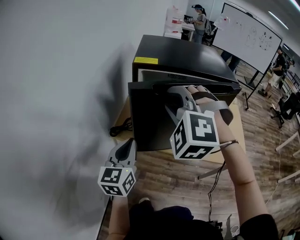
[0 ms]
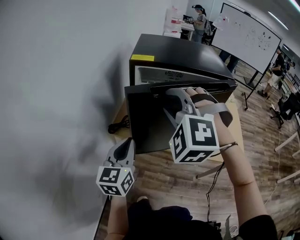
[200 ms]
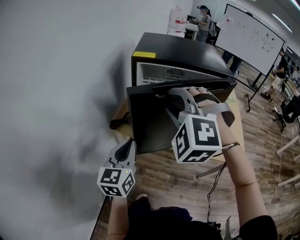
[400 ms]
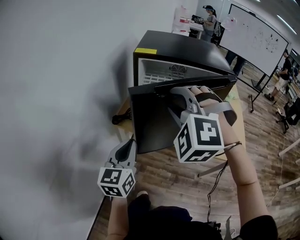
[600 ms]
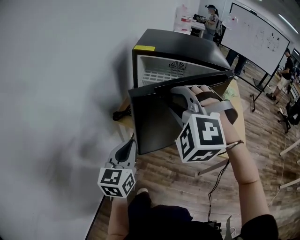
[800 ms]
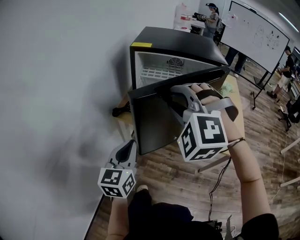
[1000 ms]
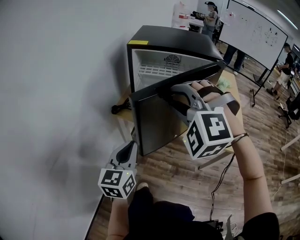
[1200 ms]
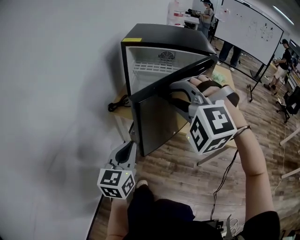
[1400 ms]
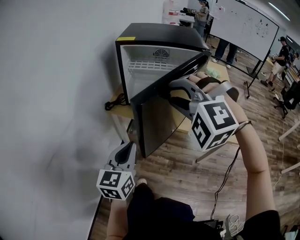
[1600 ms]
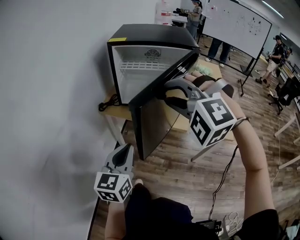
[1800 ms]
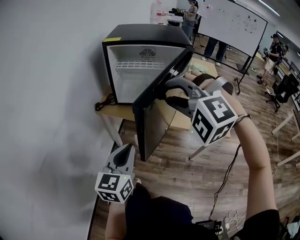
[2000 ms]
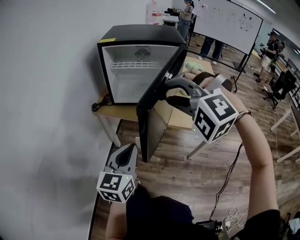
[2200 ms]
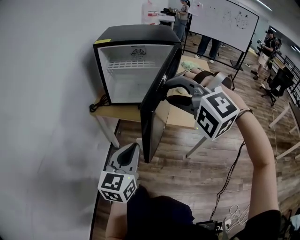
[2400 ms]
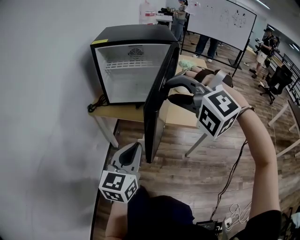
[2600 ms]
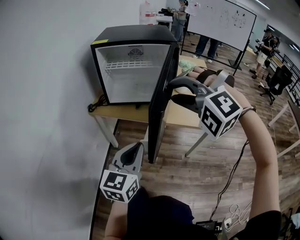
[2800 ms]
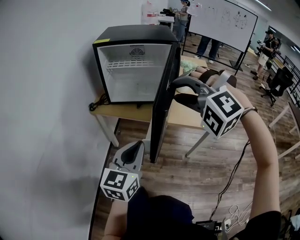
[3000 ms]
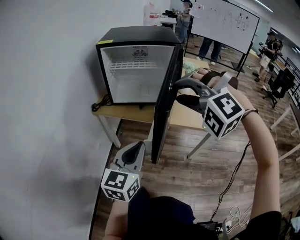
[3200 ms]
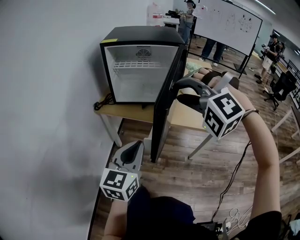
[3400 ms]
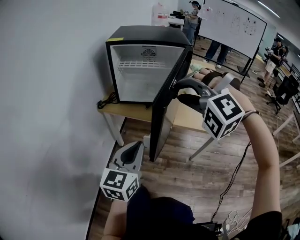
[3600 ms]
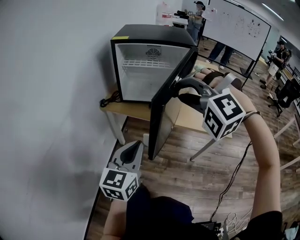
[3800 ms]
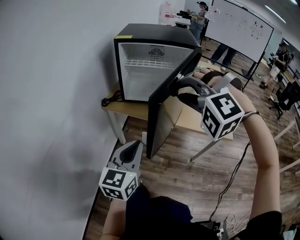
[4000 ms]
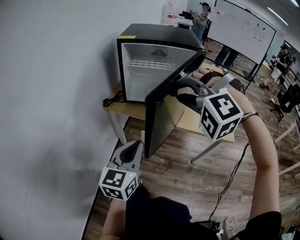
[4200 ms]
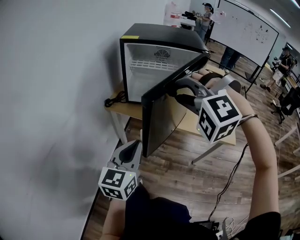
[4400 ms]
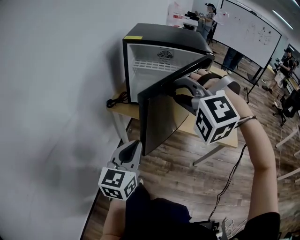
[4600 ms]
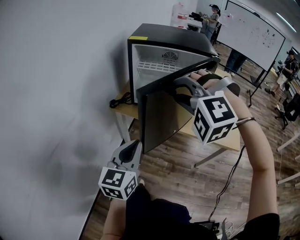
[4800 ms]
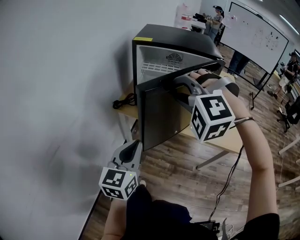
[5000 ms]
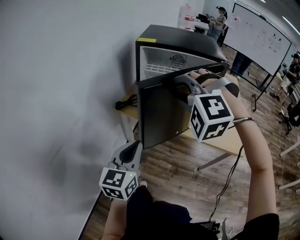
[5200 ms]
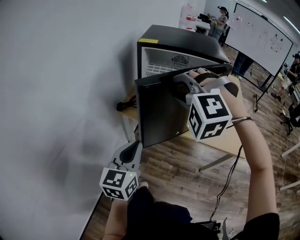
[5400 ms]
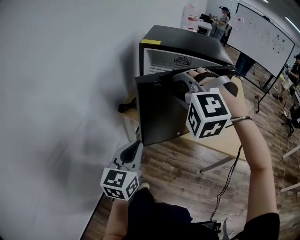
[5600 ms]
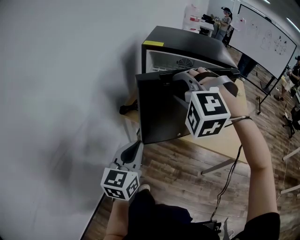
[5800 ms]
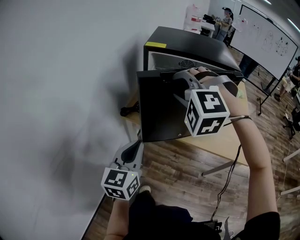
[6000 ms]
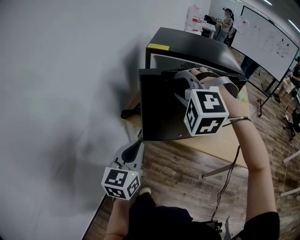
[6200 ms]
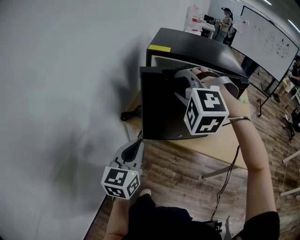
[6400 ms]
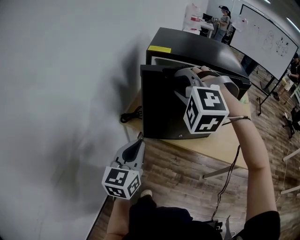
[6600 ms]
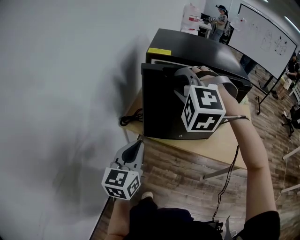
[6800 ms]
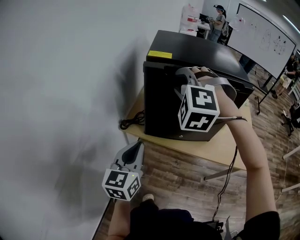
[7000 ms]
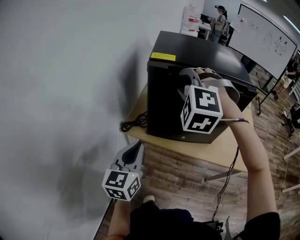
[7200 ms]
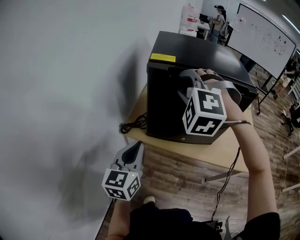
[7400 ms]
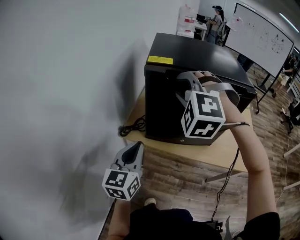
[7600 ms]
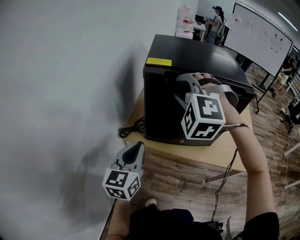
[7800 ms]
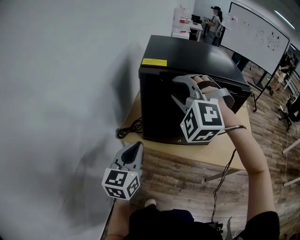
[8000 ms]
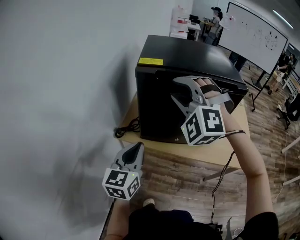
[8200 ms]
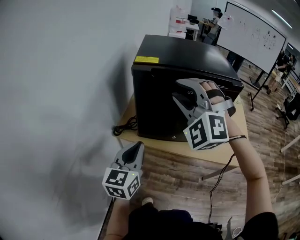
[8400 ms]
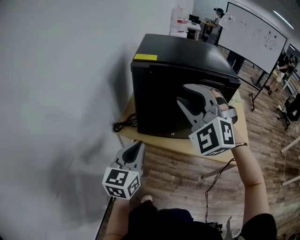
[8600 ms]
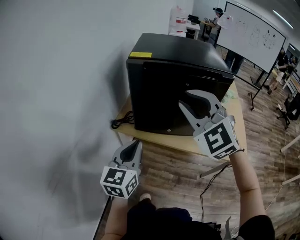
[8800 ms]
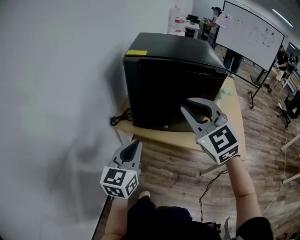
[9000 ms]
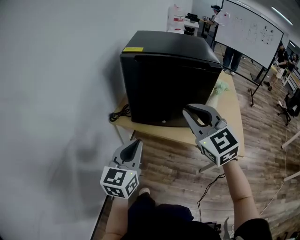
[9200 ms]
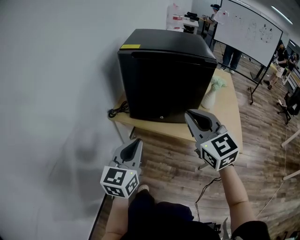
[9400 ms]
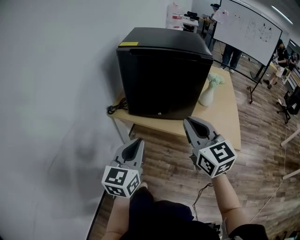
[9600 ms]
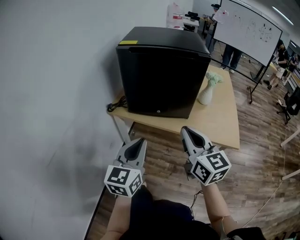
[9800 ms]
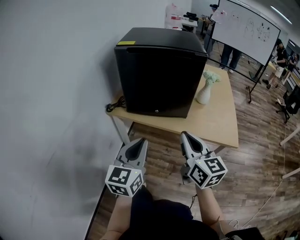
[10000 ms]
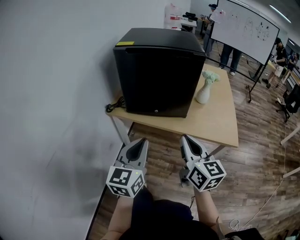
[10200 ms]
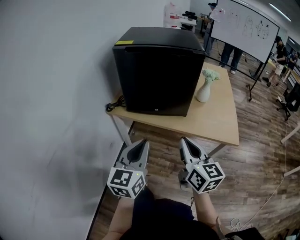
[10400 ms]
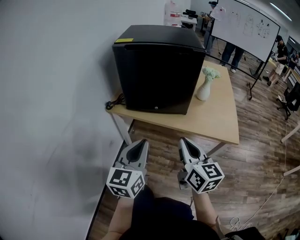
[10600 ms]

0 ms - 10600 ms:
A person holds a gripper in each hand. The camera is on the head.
0 ms - 1600 ms: Both grippers travel together backward and to the right, approximately 20 cm.
1600 ms - 3000 ms: Both grippers move to the right and backward, approximately 10 cm.
3000 ms - 4600 ms: The right gripper heads to the left and forward, covering some 10 cm. Meanwhile the left gripper shifts roughly 10 cm to the left.
4600 ms - 6000 ms: Both grippers travel together forward and to the left, approximately 15 cm.
6000 ms - 7600 ms: The two grippers go about 10 cm forward.
7600 ms - 9000 ms: The left gripper heads backward and to the right, covering about 10 cm, while the right gripper travels backward and to the right by about 20 cm, and rolls clockwise, seen from behind, by about 50 degrees.
9000 ms - 10600 ms: The left gripper goes approximately 15 cm backward and to the right, while the right gripper shifts roughly 25 cm backward, downward and to the right, and rotates around the line of its fingers by about 50 degrees, clockwise from behind.

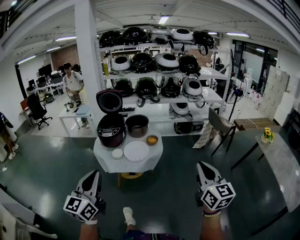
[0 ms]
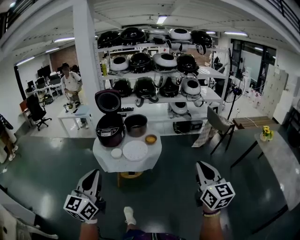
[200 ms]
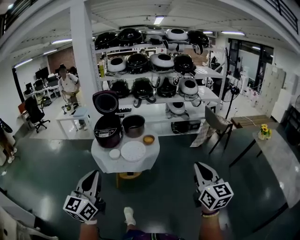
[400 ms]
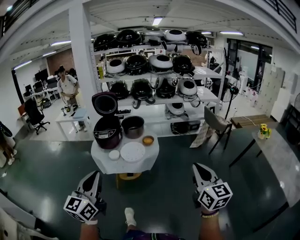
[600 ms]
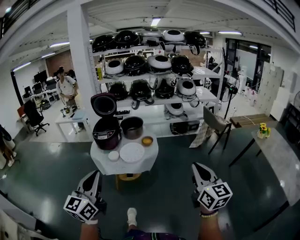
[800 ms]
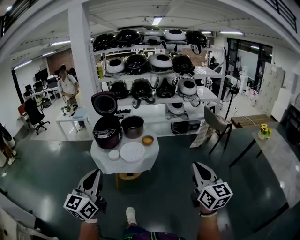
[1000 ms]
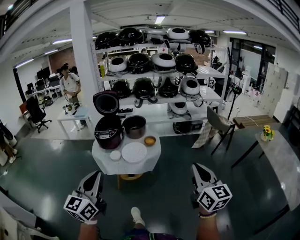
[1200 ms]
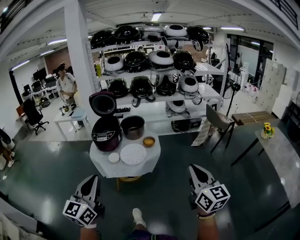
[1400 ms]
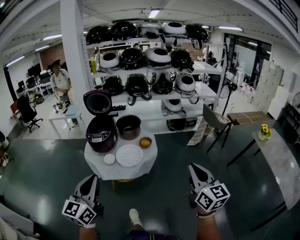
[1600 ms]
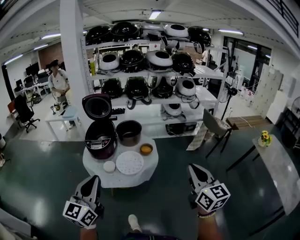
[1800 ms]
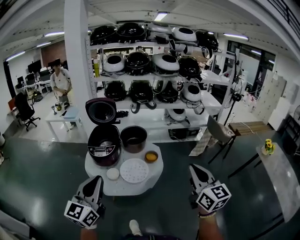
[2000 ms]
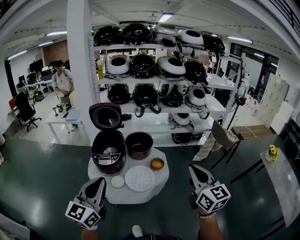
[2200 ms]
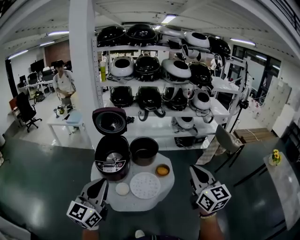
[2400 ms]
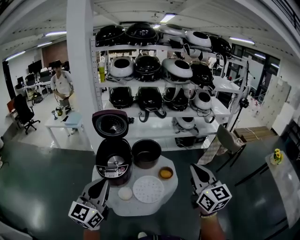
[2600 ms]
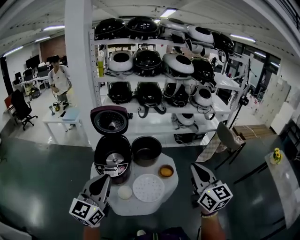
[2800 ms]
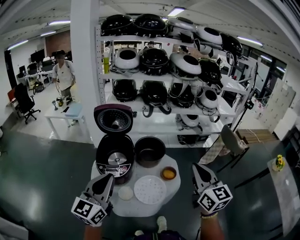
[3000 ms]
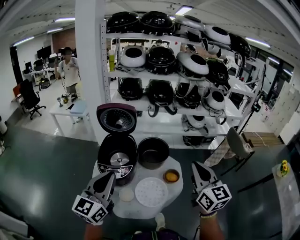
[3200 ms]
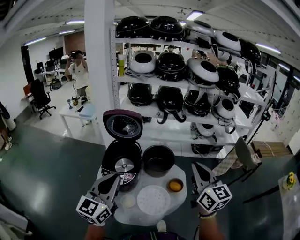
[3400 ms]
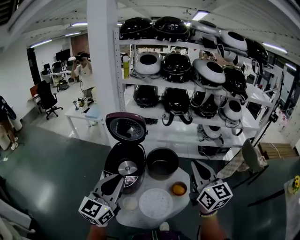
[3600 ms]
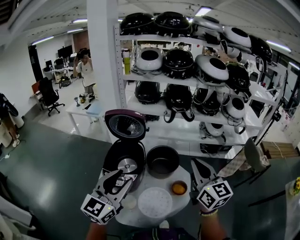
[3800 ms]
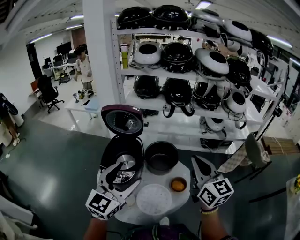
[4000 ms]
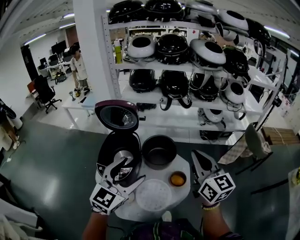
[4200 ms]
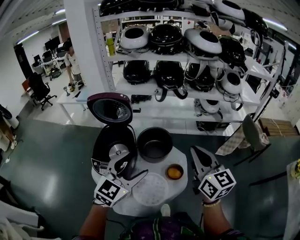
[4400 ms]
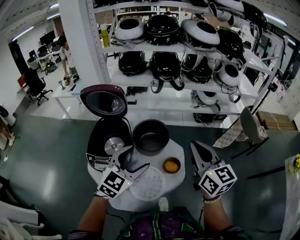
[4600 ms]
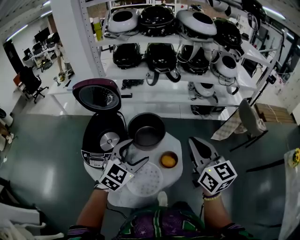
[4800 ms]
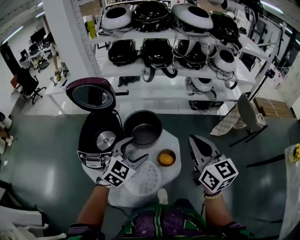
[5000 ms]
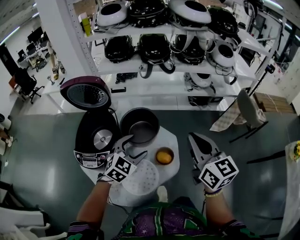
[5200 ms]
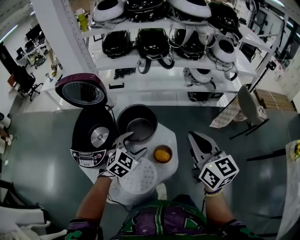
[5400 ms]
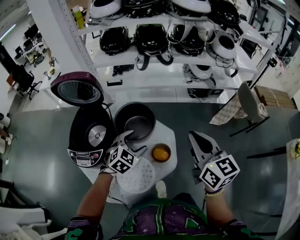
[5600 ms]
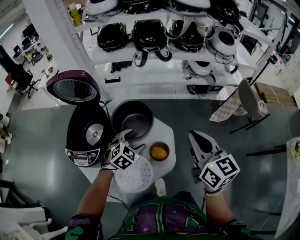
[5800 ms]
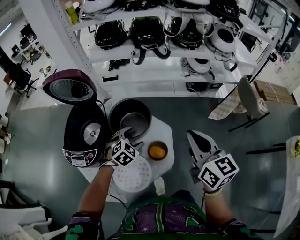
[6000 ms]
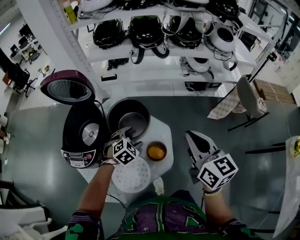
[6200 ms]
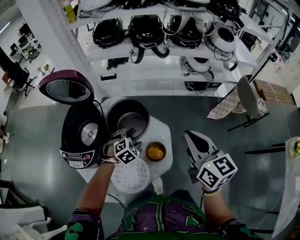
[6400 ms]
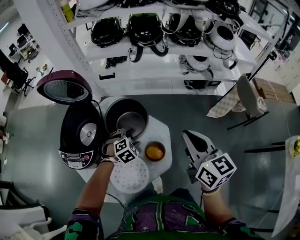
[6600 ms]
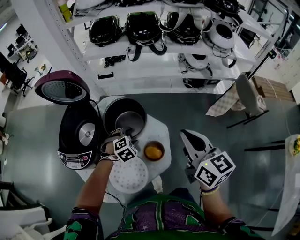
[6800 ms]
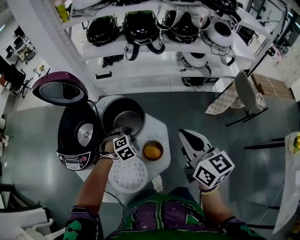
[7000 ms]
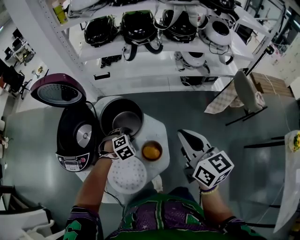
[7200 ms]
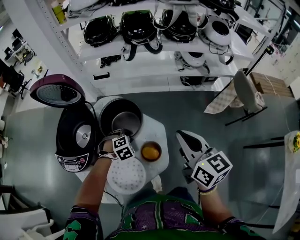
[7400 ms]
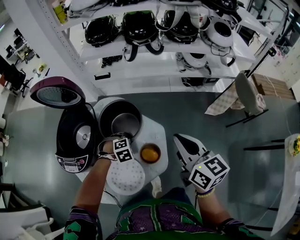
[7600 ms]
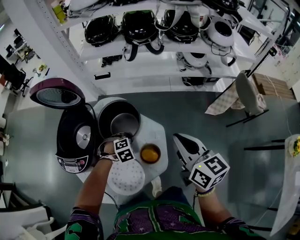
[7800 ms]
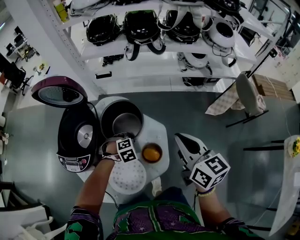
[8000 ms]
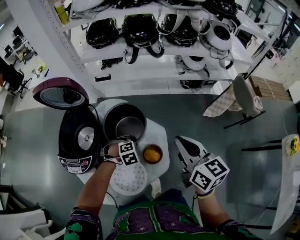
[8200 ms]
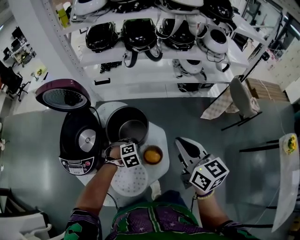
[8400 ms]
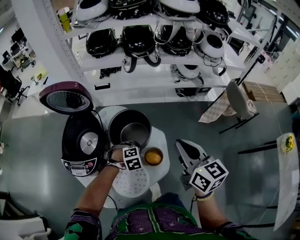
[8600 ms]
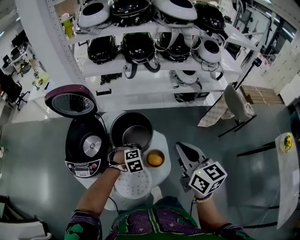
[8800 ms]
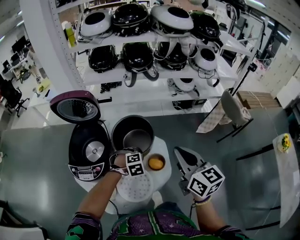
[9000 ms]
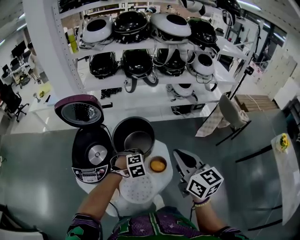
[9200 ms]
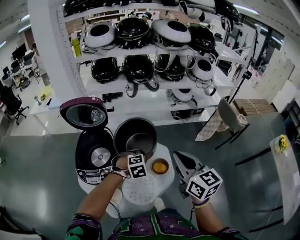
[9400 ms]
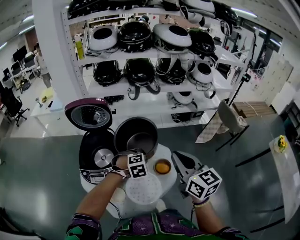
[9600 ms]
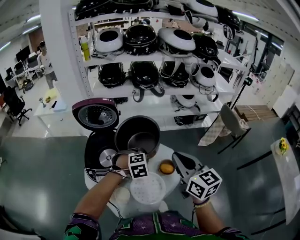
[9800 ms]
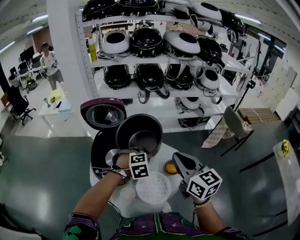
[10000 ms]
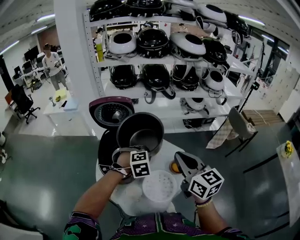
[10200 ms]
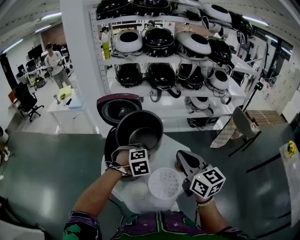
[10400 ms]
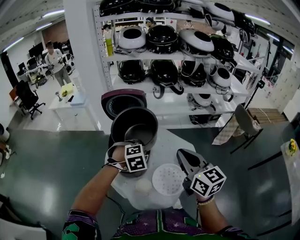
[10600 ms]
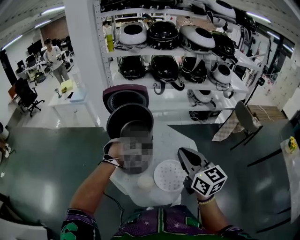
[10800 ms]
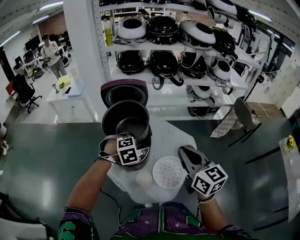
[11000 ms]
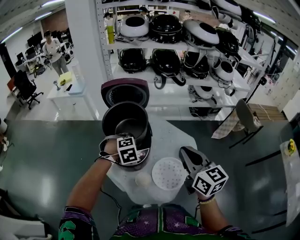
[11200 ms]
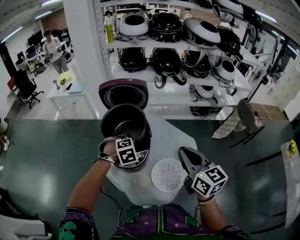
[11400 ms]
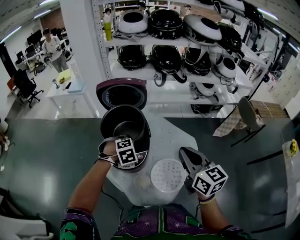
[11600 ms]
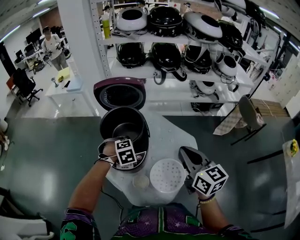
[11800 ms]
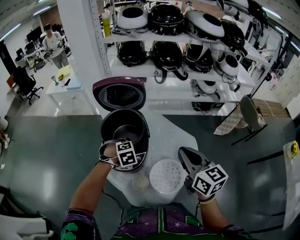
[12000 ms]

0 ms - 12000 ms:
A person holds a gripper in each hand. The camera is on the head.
0 ms - 1600 ms: The two grippers go some 10 cm forward.
1600 ms - 3000 ms: The two grippers go approximately 40 cm forward and to the left.
3000 ms - 4400 ms: The left gripper shifts about 25 cm to the right, forward and downward, rotates about 30 degrees, and opens. Meanwhile the right gripper moves forward, approximately 15 cm.
4400 ms - 6000 ms: The left gripper goes approximately 30 cm downward and forward, and points its fingers approximately 40 degrees further downward, while the right gripper travels downward, to the right and forward by about 15 cm.
6000 ms - 7600 ms: The left gripper goes about 10 cm downward, changes its angle by approximately 30 degrees, and closes up.
7600 ms - 9000 ms: The right gripper goes about 10 cm backward, upward and to the left. The left gripper heads upward and backward, covering approximately 10 cm.
9000 ms - 10400 ms: The left gripper heads to the left, upward and backward, covering approximately 25 cm. Meanwhile the right gripper travels to the left and backward by some 20 cm.
10400 ms - 12000 ms: The left gripper is displaced downward, to the left and forward by approximately 15 cm. Meanwhile the right gripper heads downward and forward, covering some 10 cm.

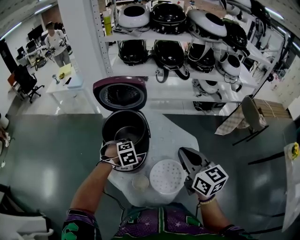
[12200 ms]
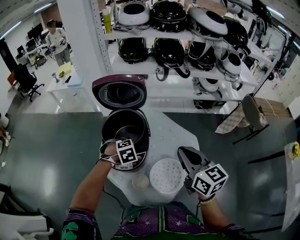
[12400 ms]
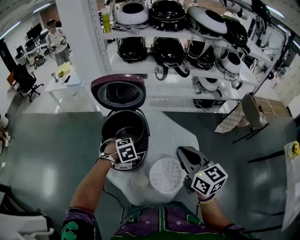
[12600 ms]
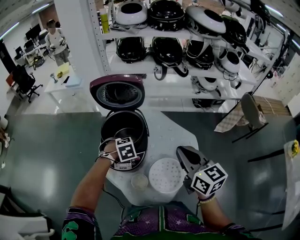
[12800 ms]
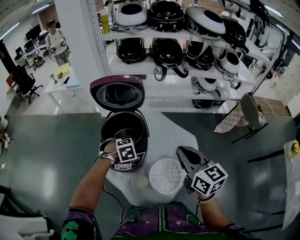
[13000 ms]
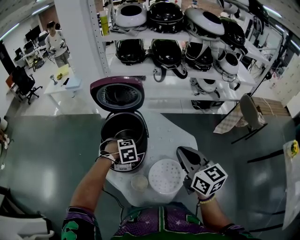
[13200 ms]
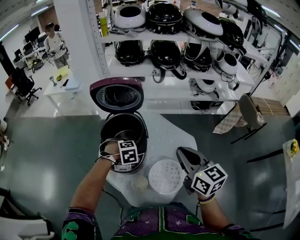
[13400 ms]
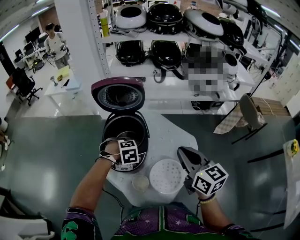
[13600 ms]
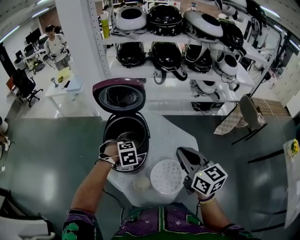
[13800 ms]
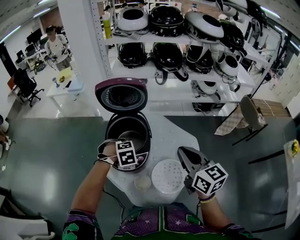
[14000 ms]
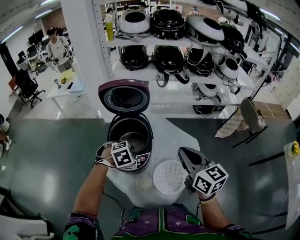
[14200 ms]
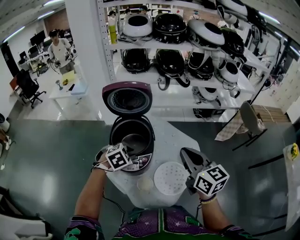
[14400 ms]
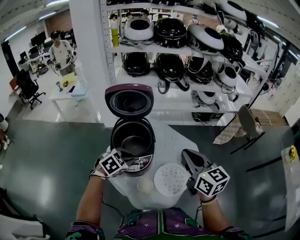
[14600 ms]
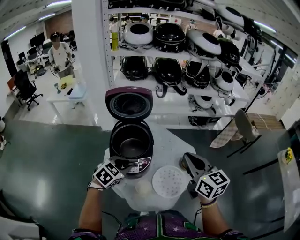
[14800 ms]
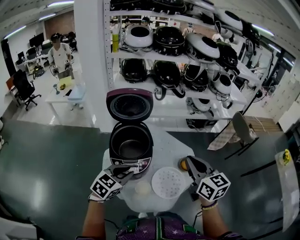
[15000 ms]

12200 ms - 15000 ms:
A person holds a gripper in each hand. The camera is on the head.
12200 ms - 13600 ms: The grippers move only a little.
13600 ms - 15000 ms: The right gripper shifts by some 5 cm. Meanwhile the left gripper moves approximately 20 cm, and points its fingers approximately 50 degrees further upward.
